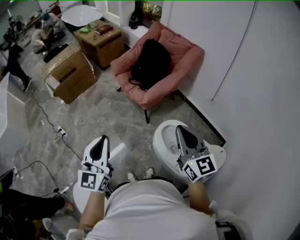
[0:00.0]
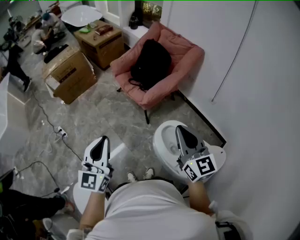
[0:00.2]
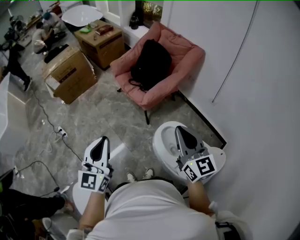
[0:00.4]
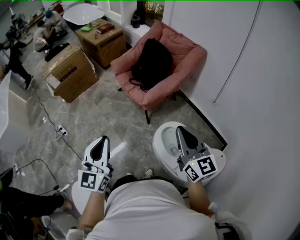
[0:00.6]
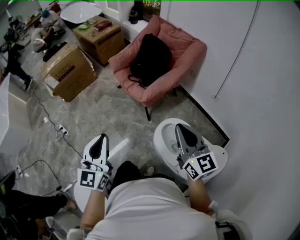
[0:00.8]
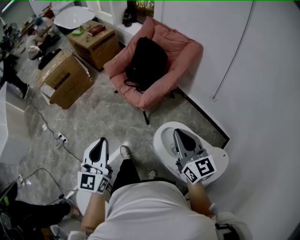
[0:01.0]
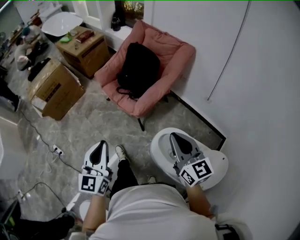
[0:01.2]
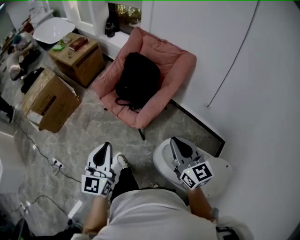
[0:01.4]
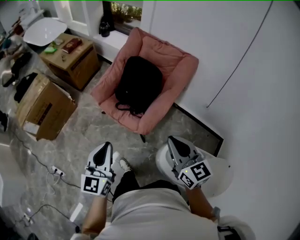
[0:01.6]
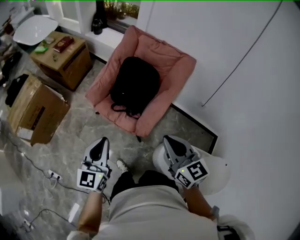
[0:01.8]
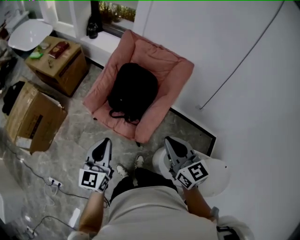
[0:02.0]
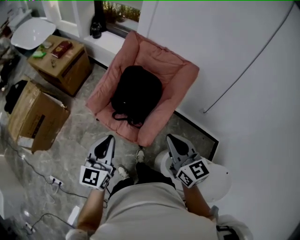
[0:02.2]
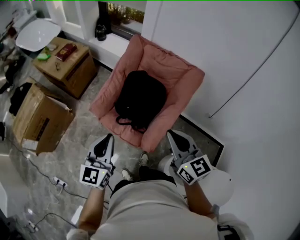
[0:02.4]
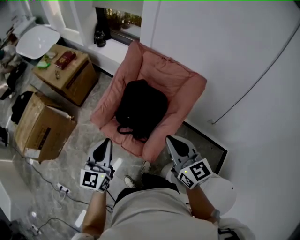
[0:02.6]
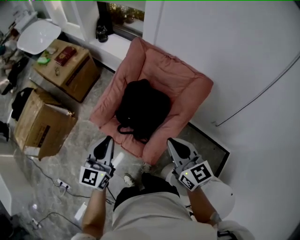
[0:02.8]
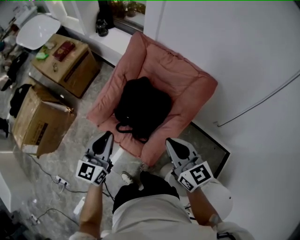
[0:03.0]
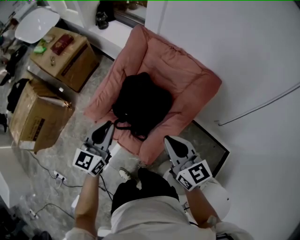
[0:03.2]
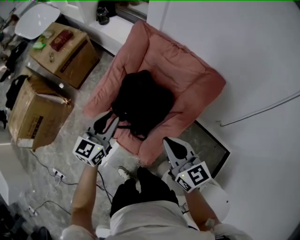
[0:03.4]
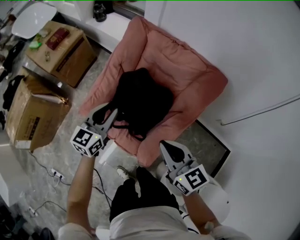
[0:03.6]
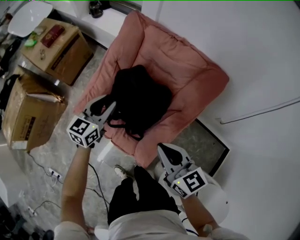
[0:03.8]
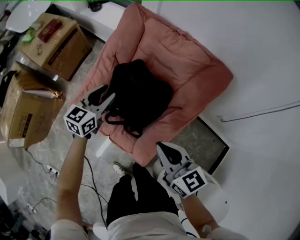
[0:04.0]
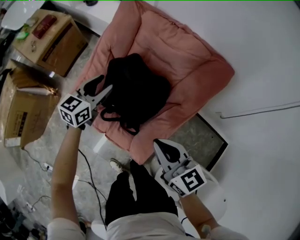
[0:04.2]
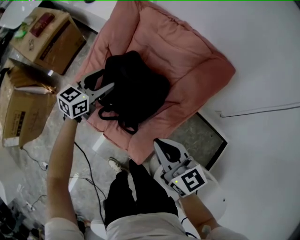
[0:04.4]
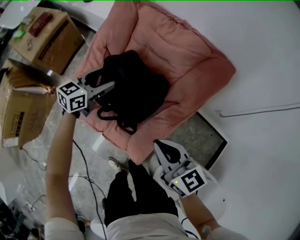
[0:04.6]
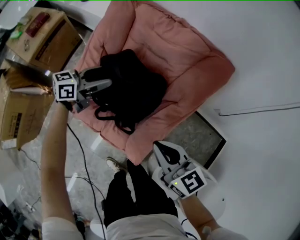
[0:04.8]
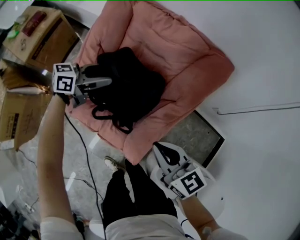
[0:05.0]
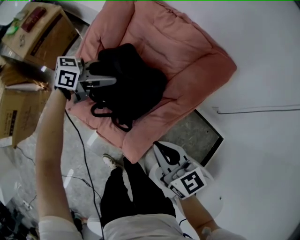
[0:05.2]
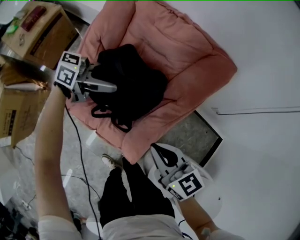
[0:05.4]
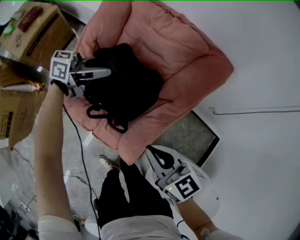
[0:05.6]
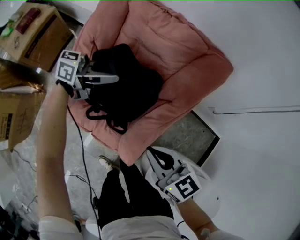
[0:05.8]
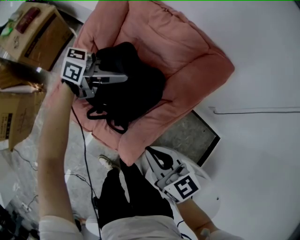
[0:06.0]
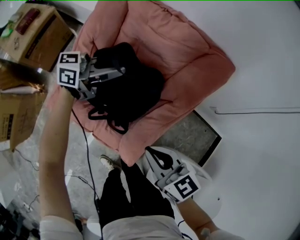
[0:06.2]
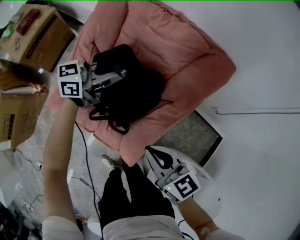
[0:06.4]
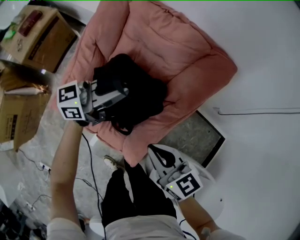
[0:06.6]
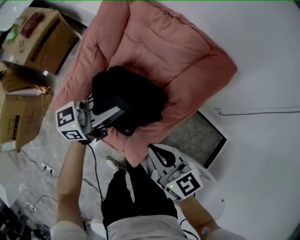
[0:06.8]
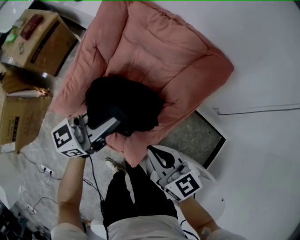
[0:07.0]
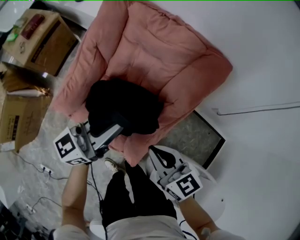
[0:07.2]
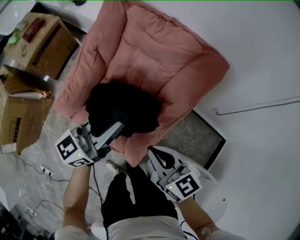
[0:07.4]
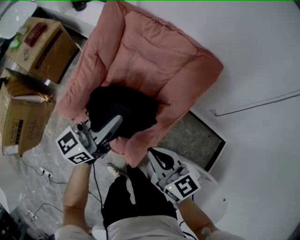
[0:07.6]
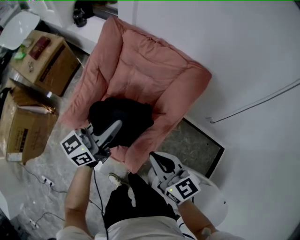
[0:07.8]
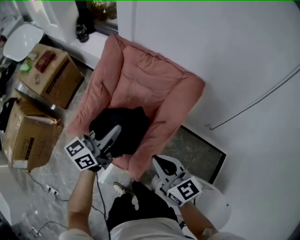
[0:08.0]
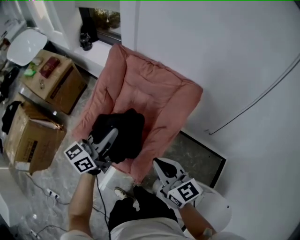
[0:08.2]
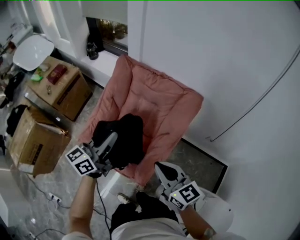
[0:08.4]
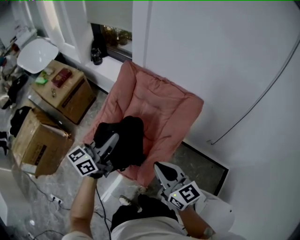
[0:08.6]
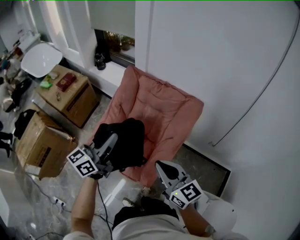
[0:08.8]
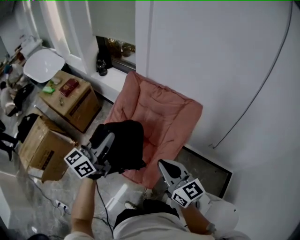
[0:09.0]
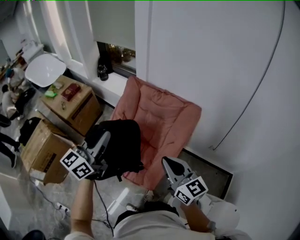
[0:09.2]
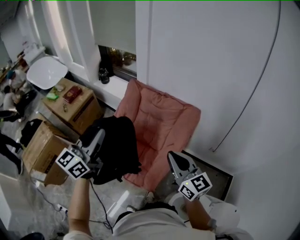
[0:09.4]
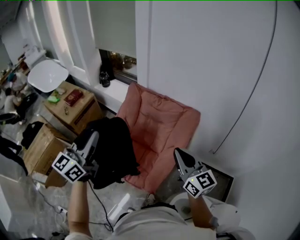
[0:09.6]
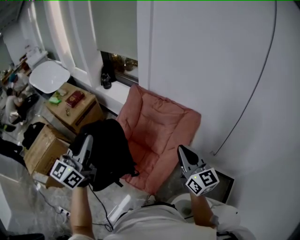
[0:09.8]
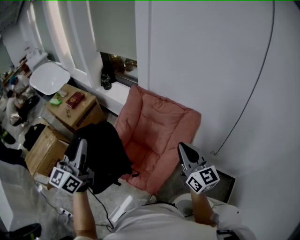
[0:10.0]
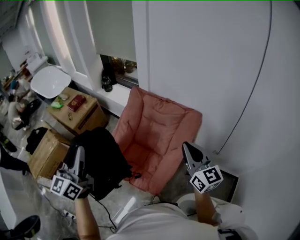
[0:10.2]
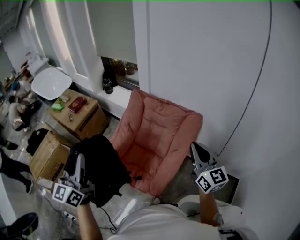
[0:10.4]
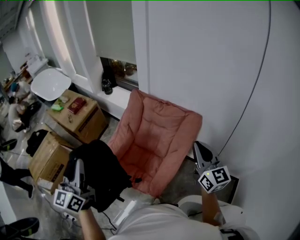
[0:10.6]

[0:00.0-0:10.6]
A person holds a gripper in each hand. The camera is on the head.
0:00.0 to 0:01.6: The grippers both shift forward by some 30 cm.
0:01.6 to 0:03.0: The two grippers go about 35 cm forward.
0:03.0 to 0:04.6: The left gripper shifts some 35 cm forward and downward, swivels about 30 degrees, and opens; the right gripper moves downward, approximately 15 cm.
0:04.6 to 0:06.0: The left gripper moves some 10 cm, rotates roughly 40 degrees, and closes its fingers.
0:06.0 to 0:07.6: The left gripper changes place by some 20 cm, changes its angle by about 40 degrees, and closes.
0:07.6 to 0:09.0: The right gripper moves upward, approximately 20 cm; the left gripper shifts some 25 cm upward, to the left and backward.
0:09.0 to 0:10.6: The right gripper travels to the right and upward by approximately 15 cm, and rotates roughly 20 degrees, while the left gripper travels to the left, backward and upward by roughly 20 cm, and turns by roughly 30 degrees.

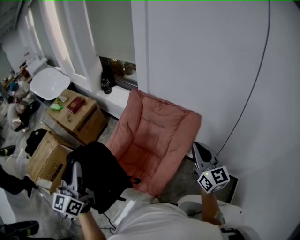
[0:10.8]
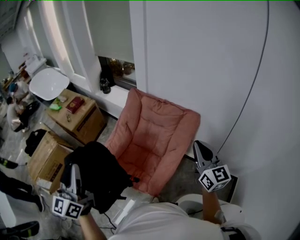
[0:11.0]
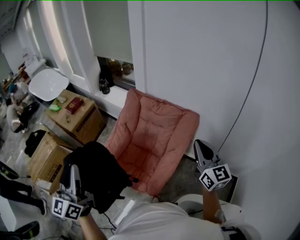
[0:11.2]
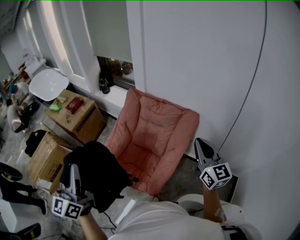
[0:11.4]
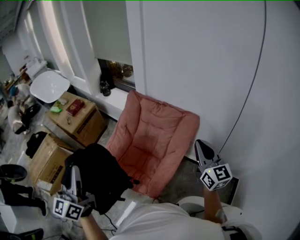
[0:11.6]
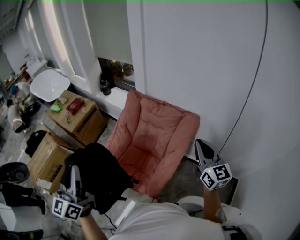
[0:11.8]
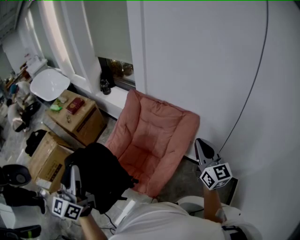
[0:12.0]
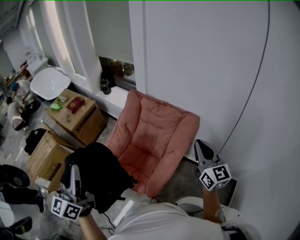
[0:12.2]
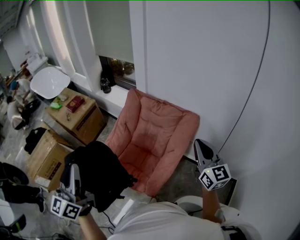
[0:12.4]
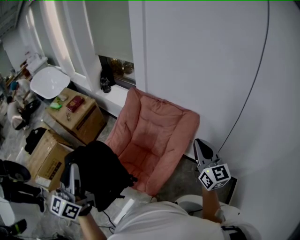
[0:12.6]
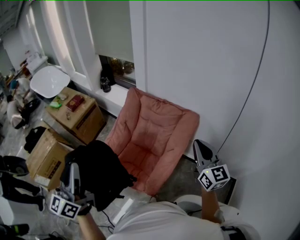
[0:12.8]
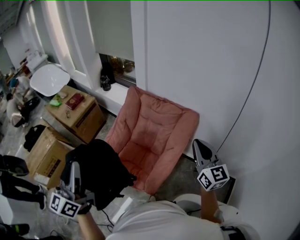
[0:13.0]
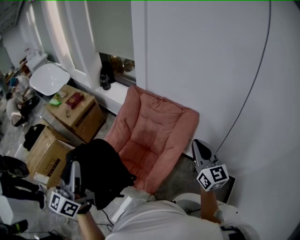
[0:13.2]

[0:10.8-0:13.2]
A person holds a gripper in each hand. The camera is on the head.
0:10.8 to 0:13.2: There are only small adjustments of the grippers.

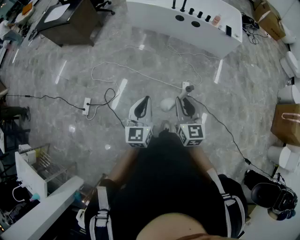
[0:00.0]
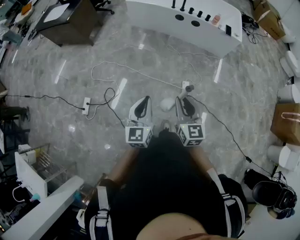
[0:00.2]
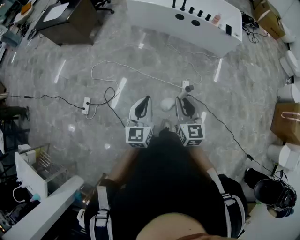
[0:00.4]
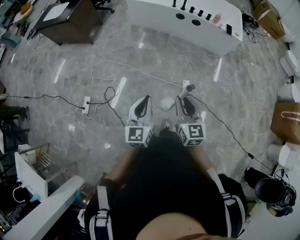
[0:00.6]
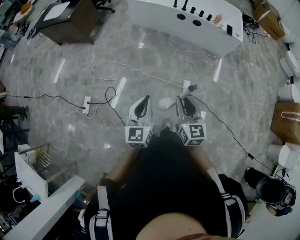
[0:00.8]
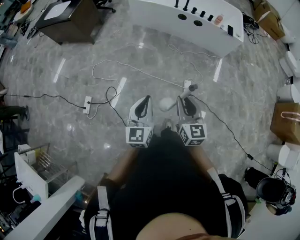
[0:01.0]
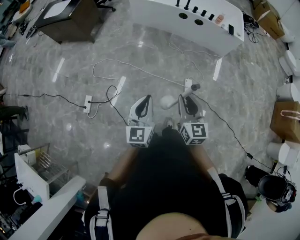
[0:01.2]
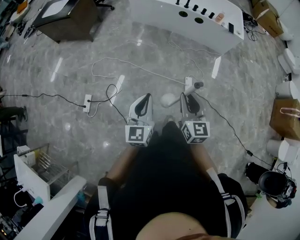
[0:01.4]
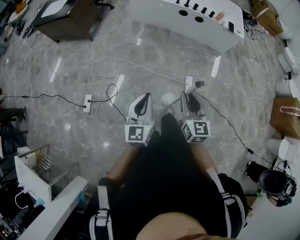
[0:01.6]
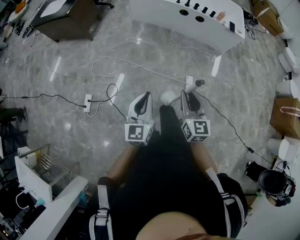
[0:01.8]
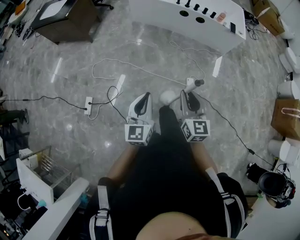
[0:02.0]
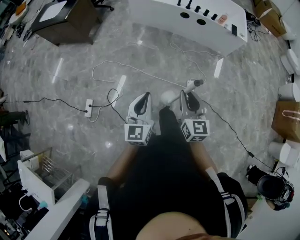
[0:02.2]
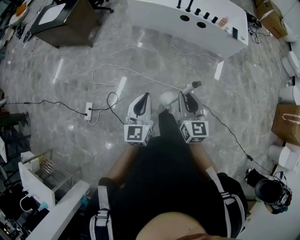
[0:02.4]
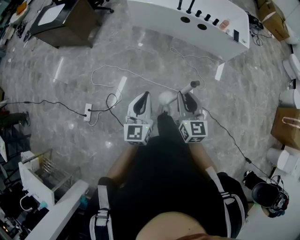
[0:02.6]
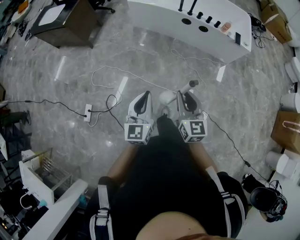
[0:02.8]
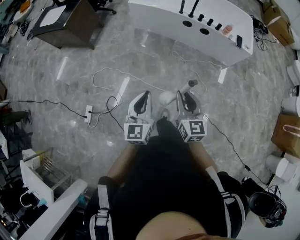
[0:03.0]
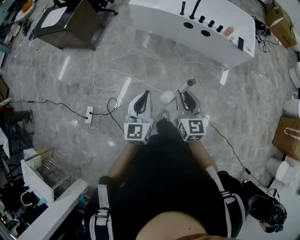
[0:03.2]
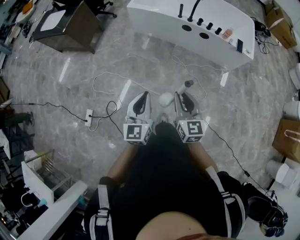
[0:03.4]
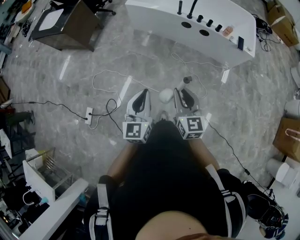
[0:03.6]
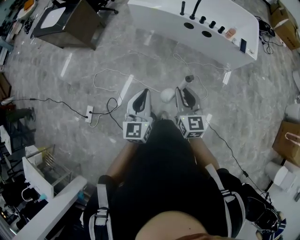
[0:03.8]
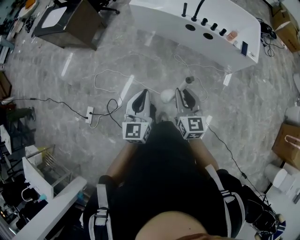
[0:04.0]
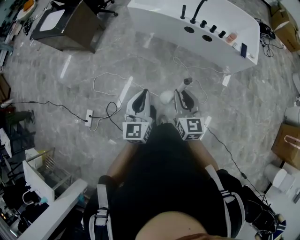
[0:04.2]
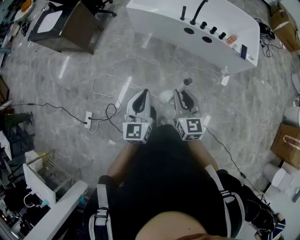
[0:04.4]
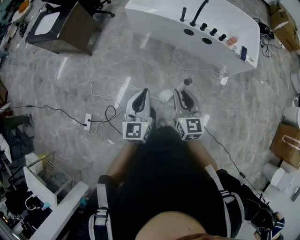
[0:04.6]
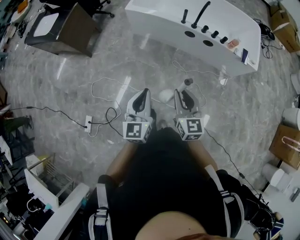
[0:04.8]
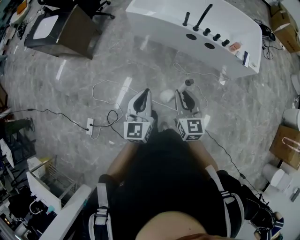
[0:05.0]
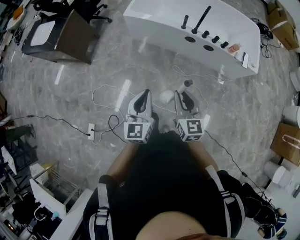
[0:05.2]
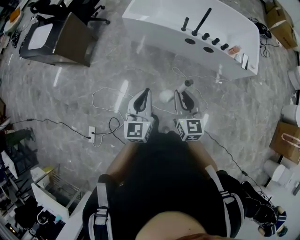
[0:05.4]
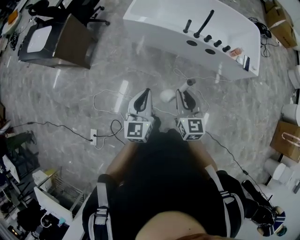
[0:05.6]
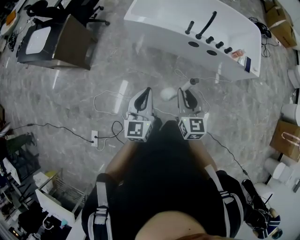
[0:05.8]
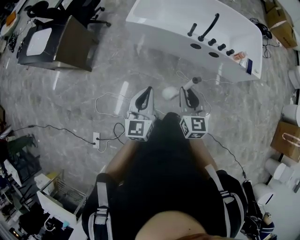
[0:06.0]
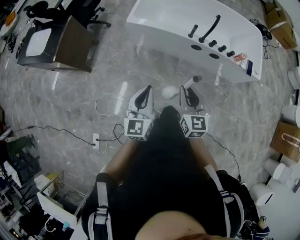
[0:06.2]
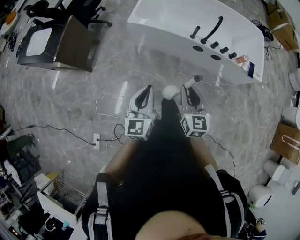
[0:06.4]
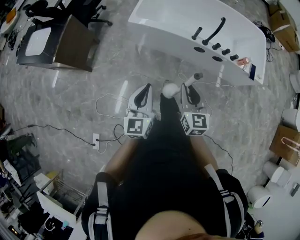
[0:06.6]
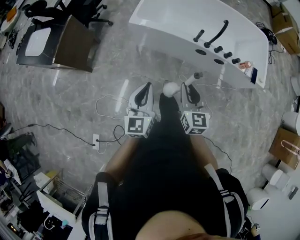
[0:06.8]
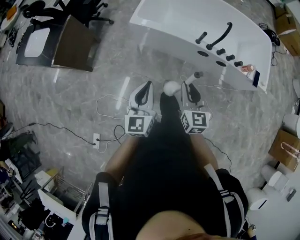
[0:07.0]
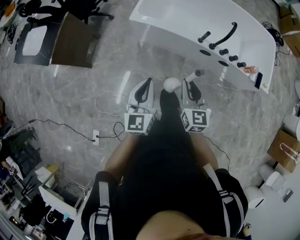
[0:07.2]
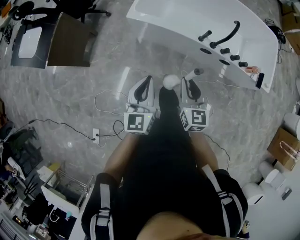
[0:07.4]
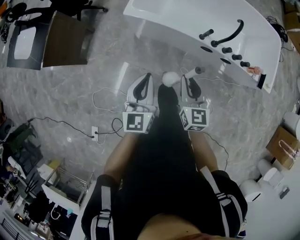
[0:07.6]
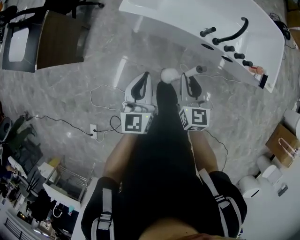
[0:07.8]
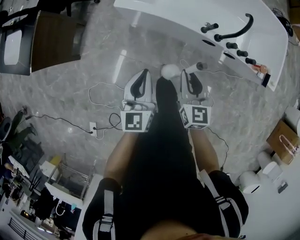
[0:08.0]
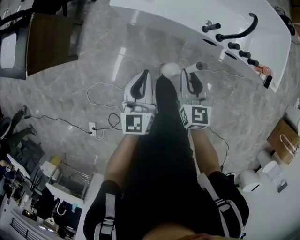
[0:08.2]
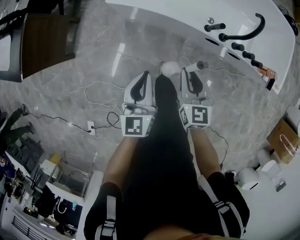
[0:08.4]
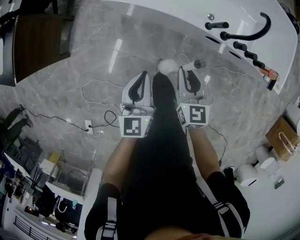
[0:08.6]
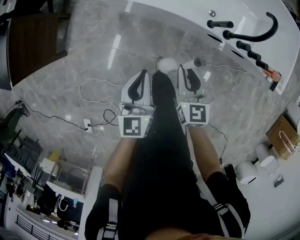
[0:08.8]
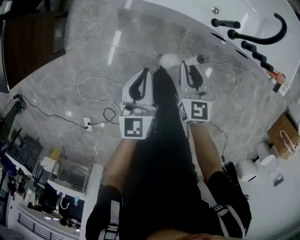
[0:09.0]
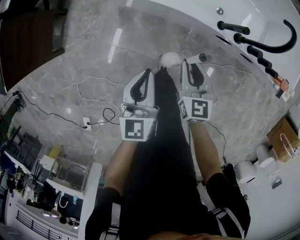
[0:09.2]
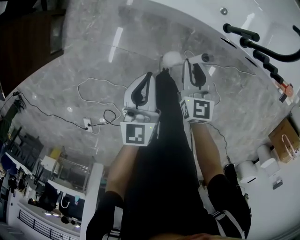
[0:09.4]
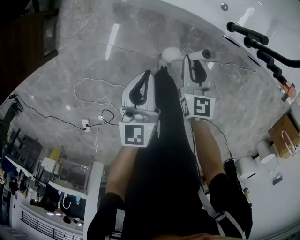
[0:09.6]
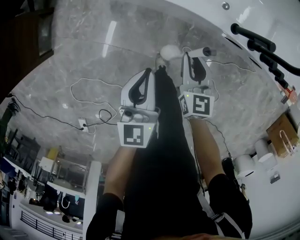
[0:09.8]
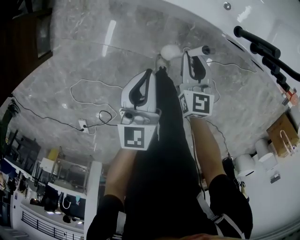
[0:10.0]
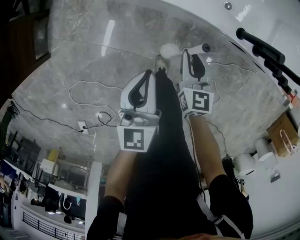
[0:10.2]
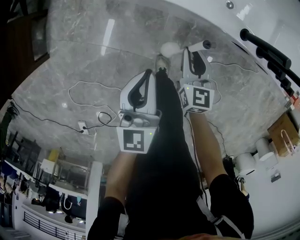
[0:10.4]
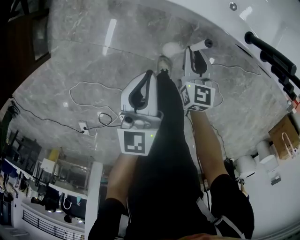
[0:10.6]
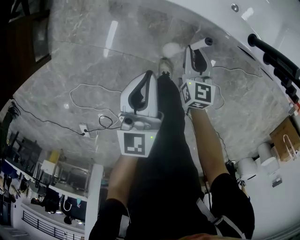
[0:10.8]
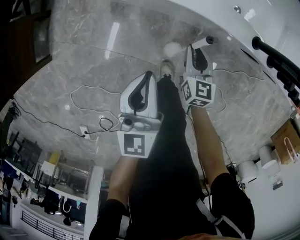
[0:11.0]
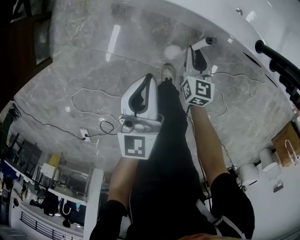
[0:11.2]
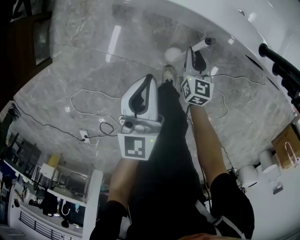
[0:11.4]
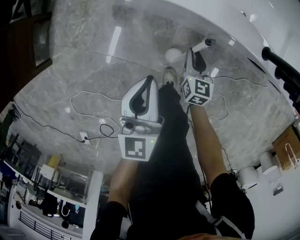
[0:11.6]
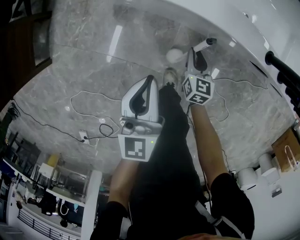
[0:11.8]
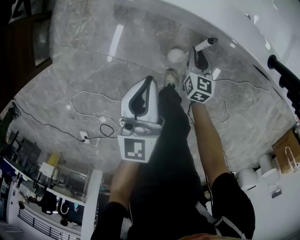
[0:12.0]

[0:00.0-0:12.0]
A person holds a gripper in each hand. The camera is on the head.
0:00.0 to 0:01.6: Both grippers travel together to the left, approximately 10 cm.
0:01.6 to 0:03.0: Both grippers move forward, about 25 cm.
0:03.0 to 0:04.4: The two grippers go some 15 cm forward.
0:04.4 to 0:06.0: The grippers both shift forward and to the left by some 30 cm.
0:06.0 to 0:07.6: The grippers both shift forward by some 25 cm.
0:07.6 to 0:09.0: The grippers both shift downward and forward by about 25 cm.
0:09.0 to 0:10.4: The right gripper shifts roughly 20 cm downward, while the left gripper goes approximately 15 cm downward and forward.
0:10.4 to 0:12.0: The right gripper heads downward, covering approximately 20 cm. Meanwhile the left gripper moves downward, approximately 10 cm.
